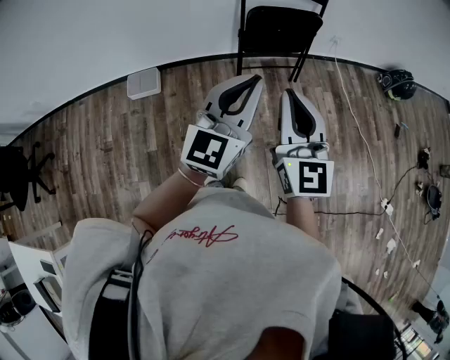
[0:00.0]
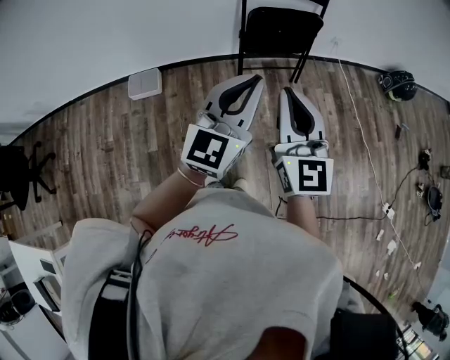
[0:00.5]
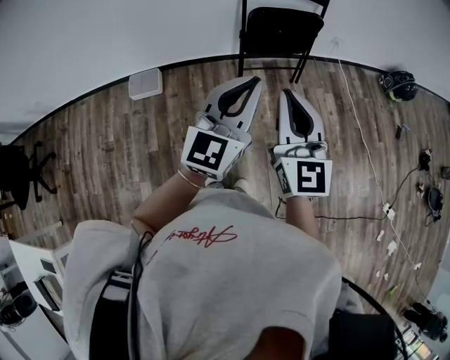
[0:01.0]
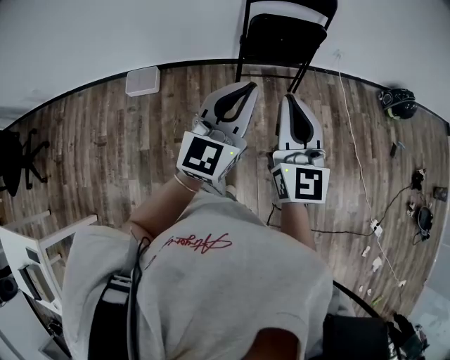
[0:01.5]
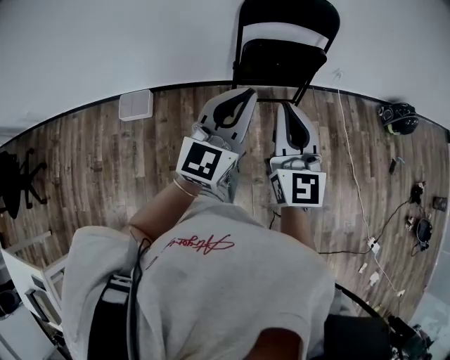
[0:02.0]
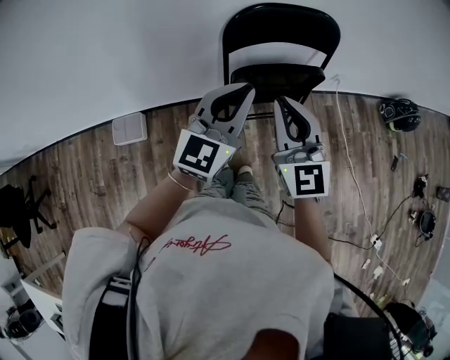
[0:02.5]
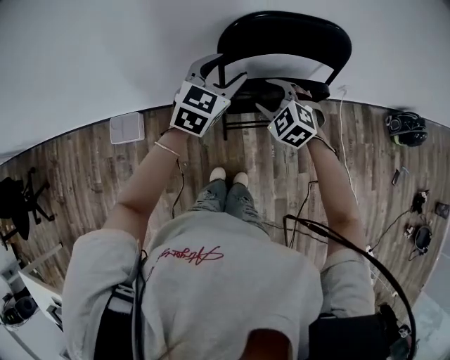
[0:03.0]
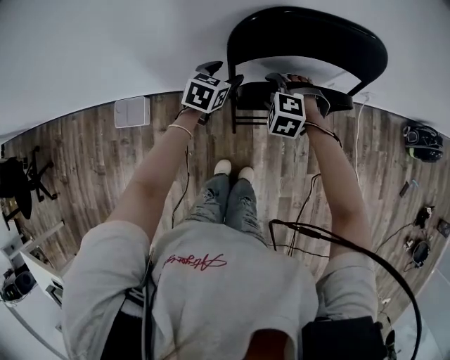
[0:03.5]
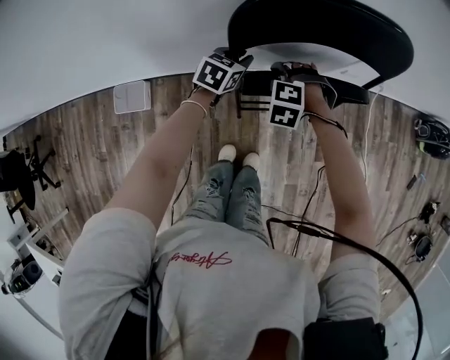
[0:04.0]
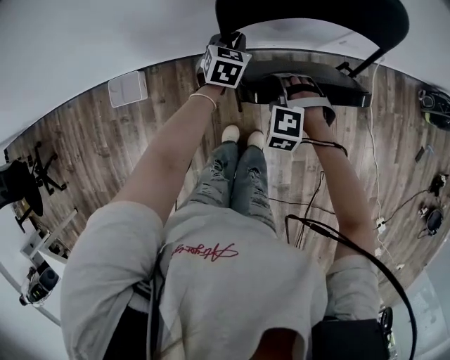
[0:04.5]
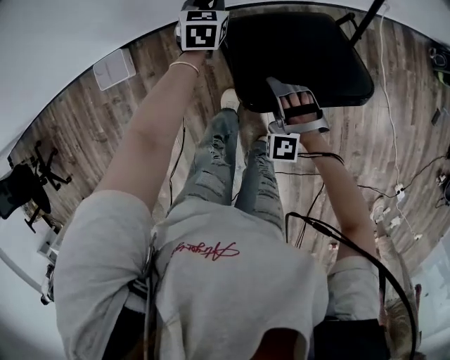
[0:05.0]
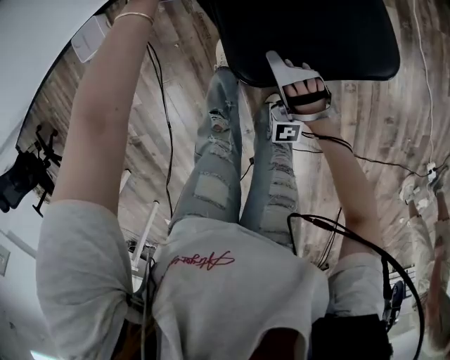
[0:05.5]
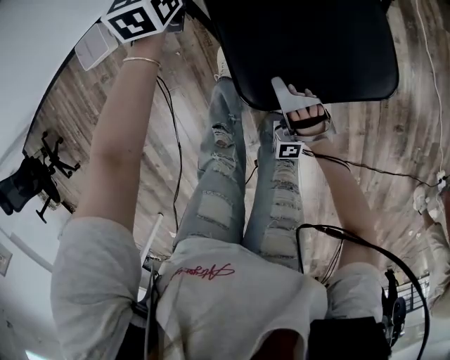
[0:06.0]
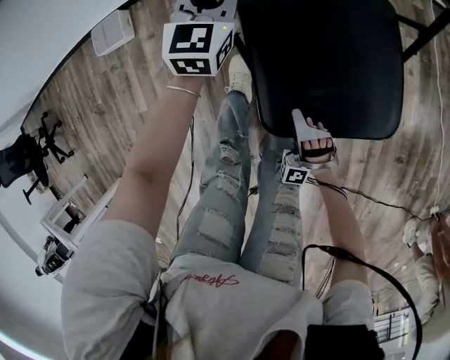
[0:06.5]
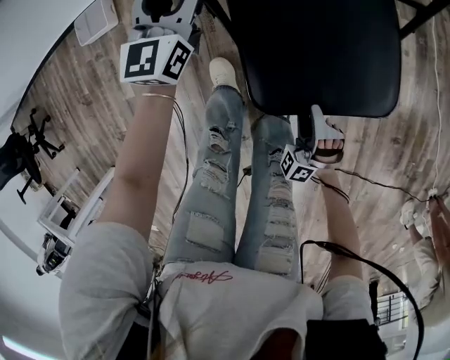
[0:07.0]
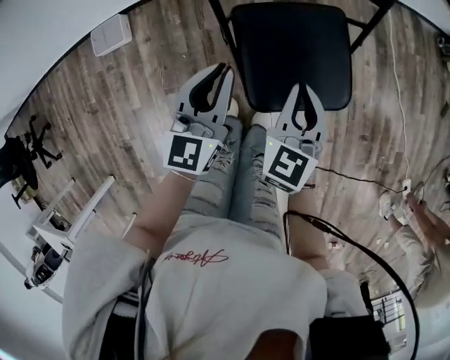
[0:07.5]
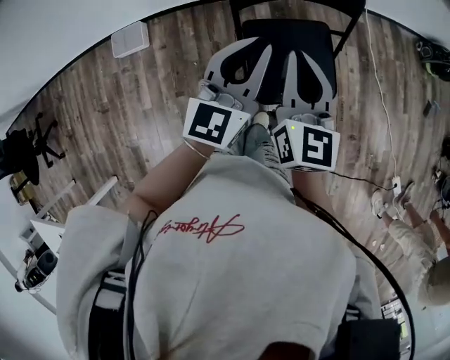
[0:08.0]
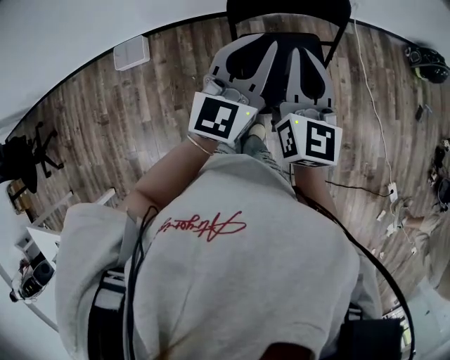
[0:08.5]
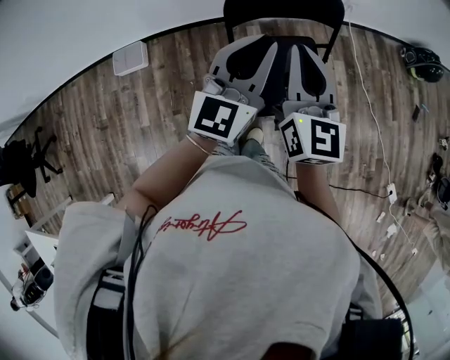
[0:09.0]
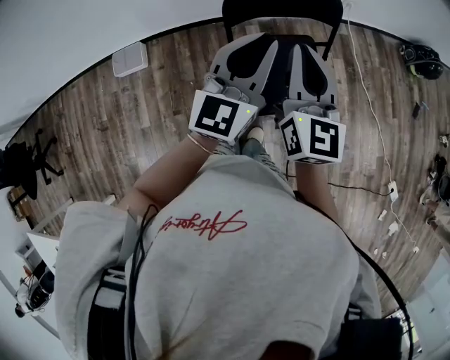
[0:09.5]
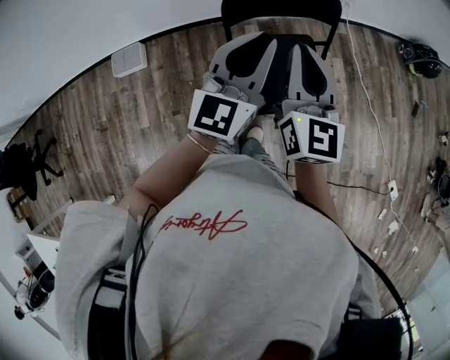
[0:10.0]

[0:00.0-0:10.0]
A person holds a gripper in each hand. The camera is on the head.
0:00.0 to 0:02.0: Both grippers travel together forward, approximately 15 cm.
0:02.0 to 0:04.0: The two grippers go roughly 50 cm forward and downward. The left gripper angles its fingers downward, by approximately 50 degrees, and opens, then closes once more; the right gripper tips its fingers downward by roughly 80 degrees, and opens its fingers.
0:04.0 to 0:06.0: The right gripper is displaced backward and downward by roughly 40 cm, and points its fingers some 50 degrees further upward. Meanwhile the left gripper goes roughly 15 cm backward and downward, and changes its angle by roughly 20 degrees.
0:06.0 to 0:08.0: The right gripper goes roughly 40 cm upward, rolls clockwise, seen from behind, by some 100 degrees, and closes up. The left gripper travels upward and backward by approximately 40 cm, turns by about 30 degrees, and opens, then closes once more.
0:08.0 to 0:10.0: Both grippers travel together upward, some 5 cm.

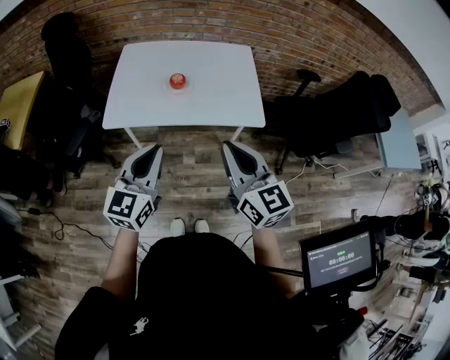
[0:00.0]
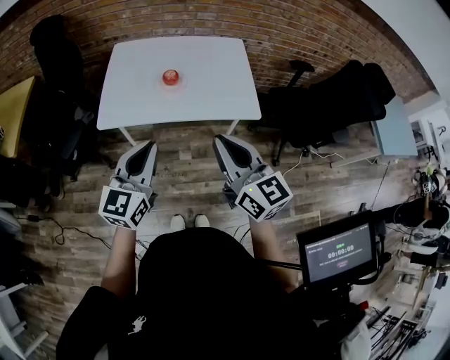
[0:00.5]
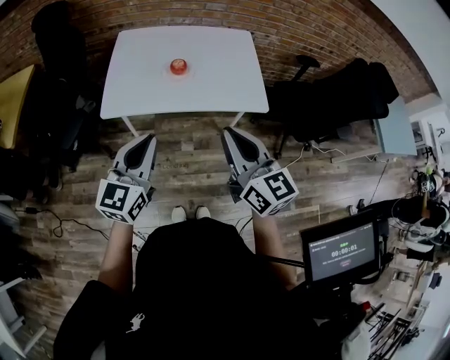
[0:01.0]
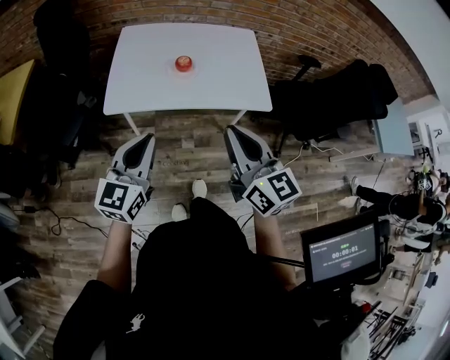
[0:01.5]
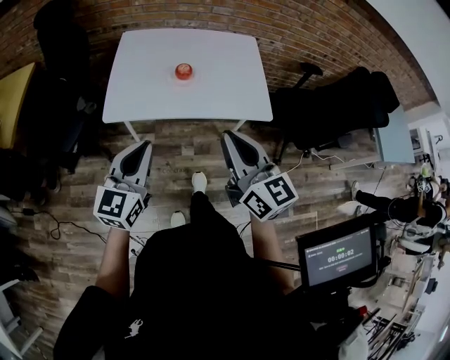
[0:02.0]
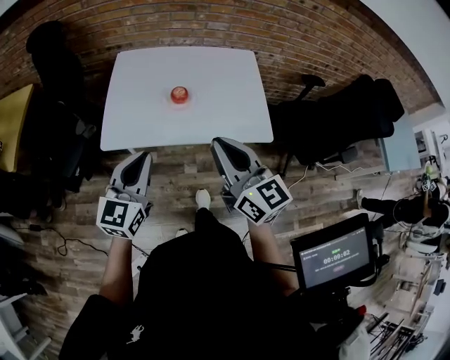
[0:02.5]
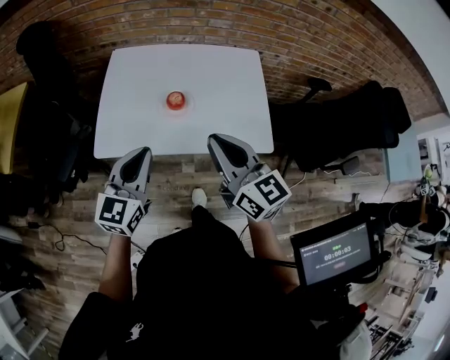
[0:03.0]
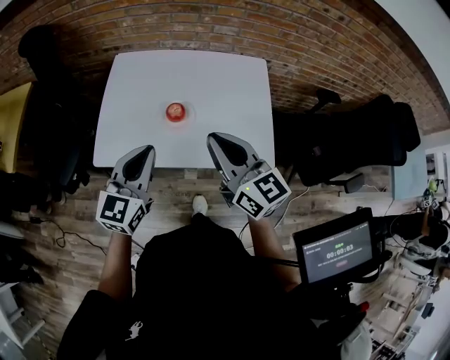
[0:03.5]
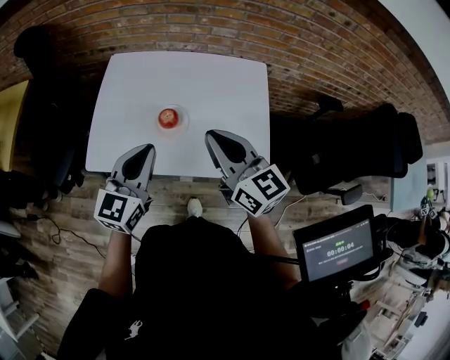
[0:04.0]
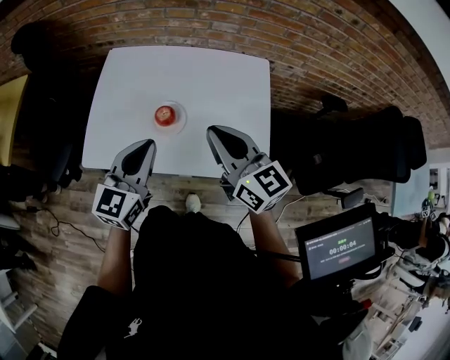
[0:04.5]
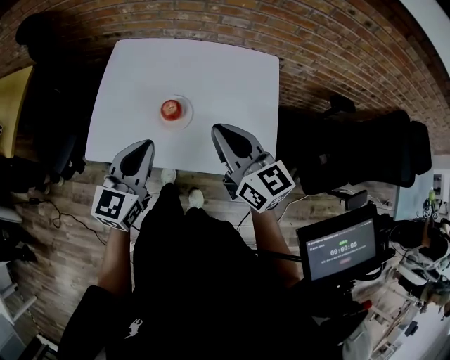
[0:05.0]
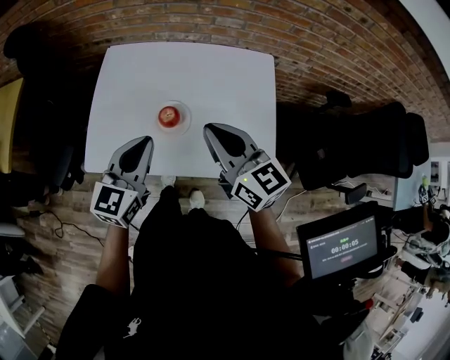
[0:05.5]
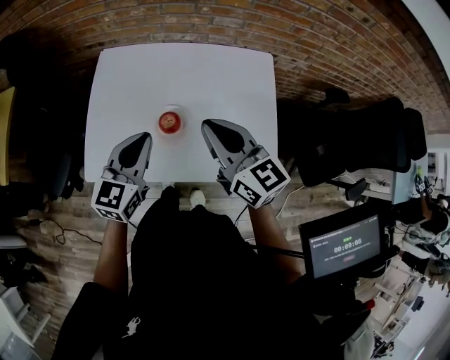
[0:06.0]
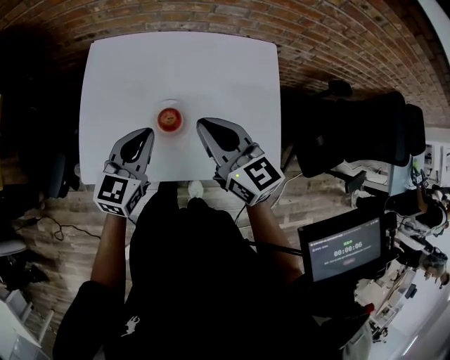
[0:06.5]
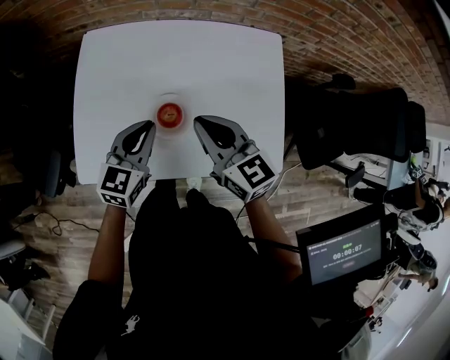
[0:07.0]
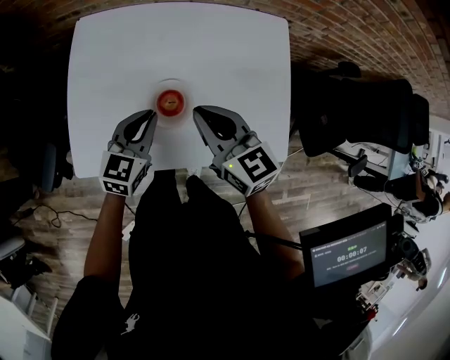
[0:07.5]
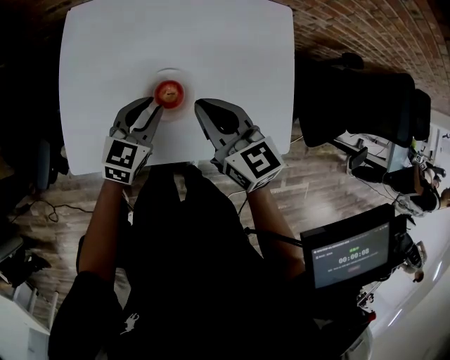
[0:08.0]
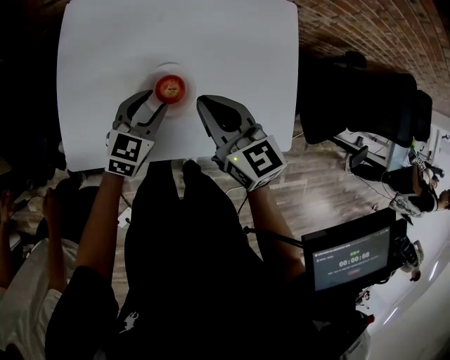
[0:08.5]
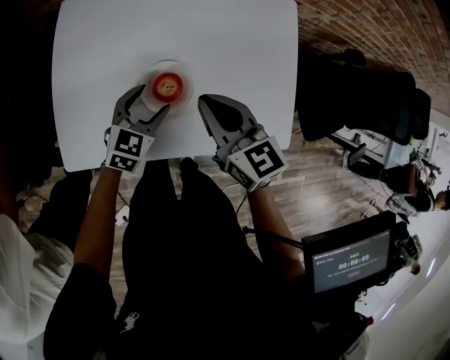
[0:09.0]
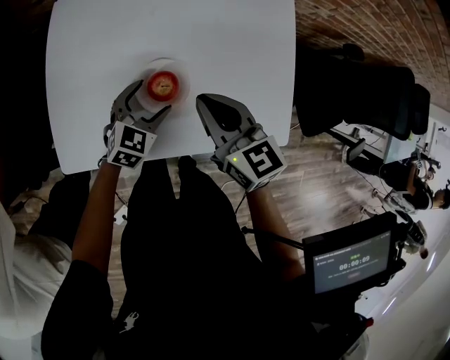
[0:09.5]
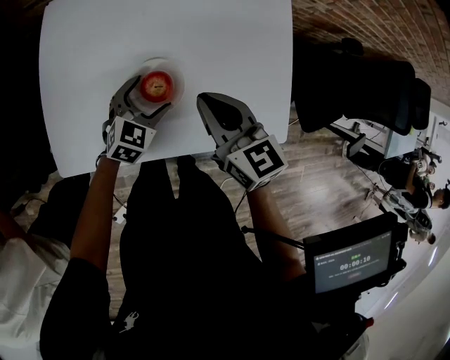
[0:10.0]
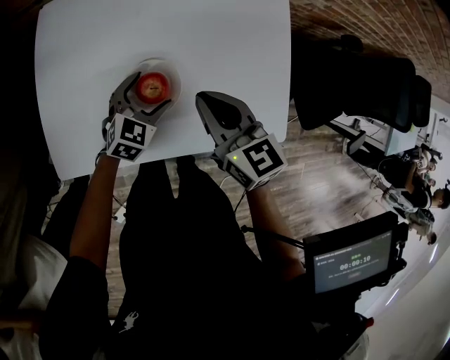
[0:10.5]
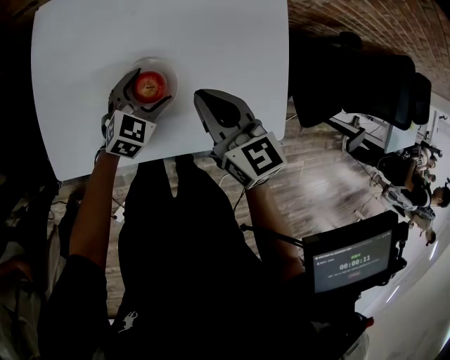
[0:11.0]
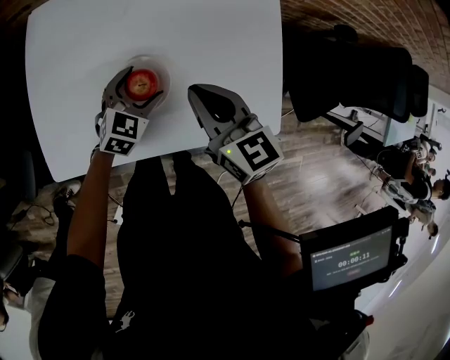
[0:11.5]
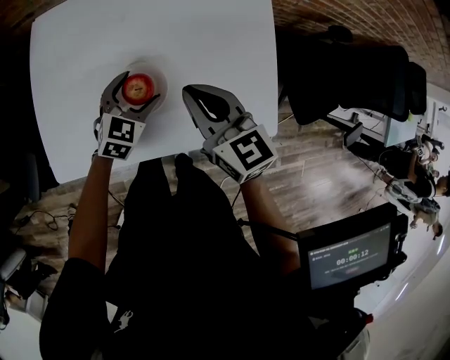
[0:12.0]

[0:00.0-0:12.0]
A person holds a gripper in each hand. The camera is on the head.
0:00.0 to 0:02.0: Both grippers move to the left, roughly 5 cm.
0:02.0 to 0:04.0: The right gripper shifts about 25 cm forward. Meanwhile the left gripper goes approximately 25 cm forward and to the right.
0:04.0 to 0:06.0: The grippers both shift forward by some 10 cm.
0:06.0 to 0:08.0: Both grippers move downward, some 15 cm.
0:08.0 to 0:10.0: The left gripper is displaced downward by some 5 cm, and opens.
0:10.0 to 0:12.0: The grippers move only a little.

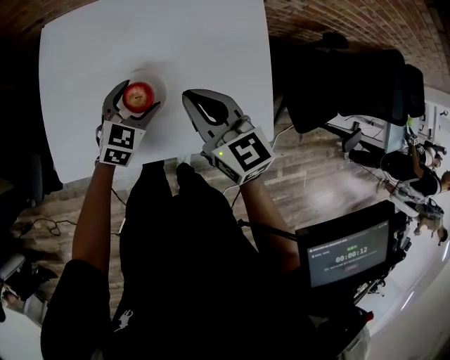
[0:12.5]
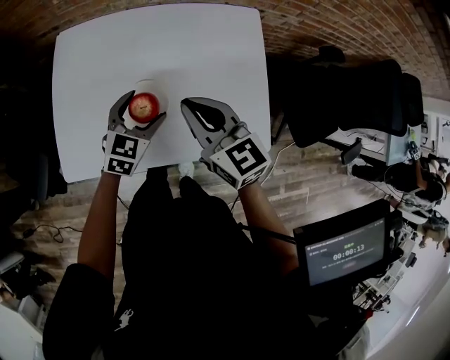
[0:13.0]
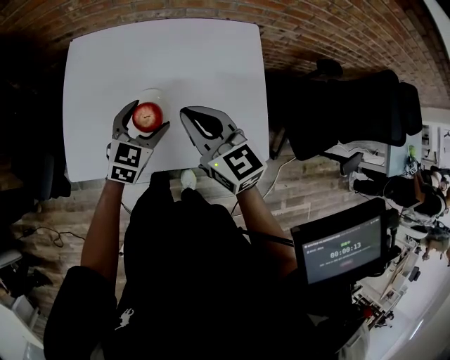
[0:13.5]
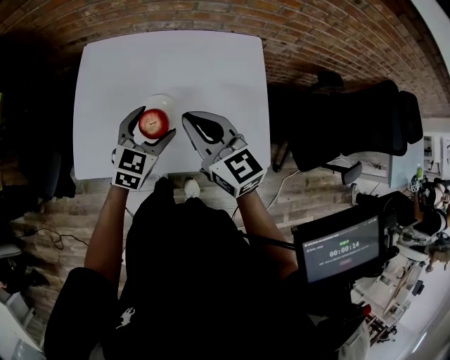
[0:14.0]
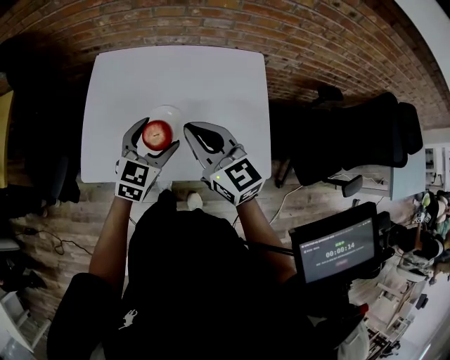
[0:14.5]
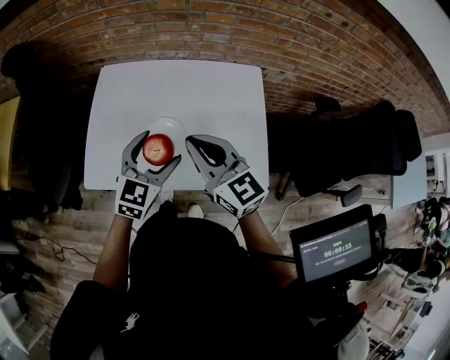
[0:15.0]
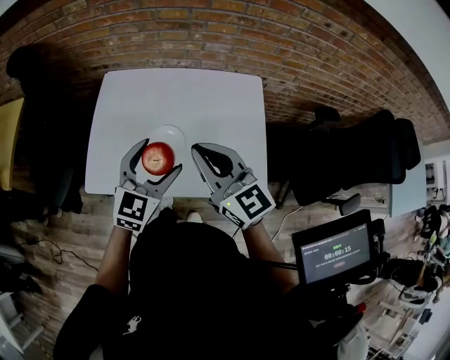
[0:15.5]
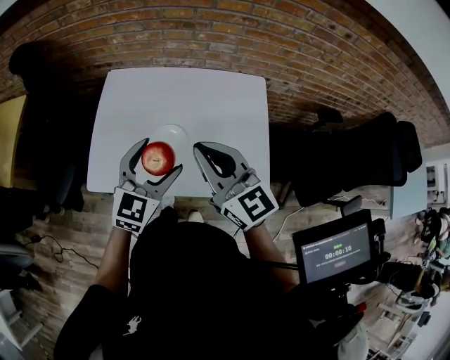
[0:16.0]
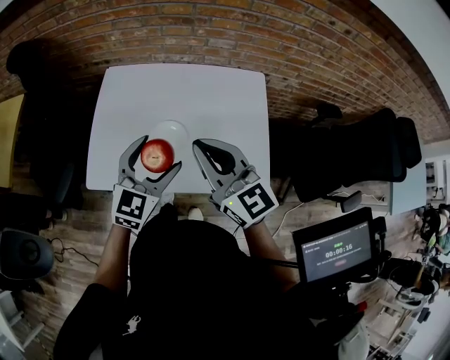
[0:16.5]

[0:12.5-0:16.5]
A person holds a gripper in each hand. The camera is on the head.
0:12.5 to 0:14.5: The grippers both shift upward and backward by approximately 15 cm.
0:14.5 to 0:16.5: Both grippers move upward, roughly 5 cm.

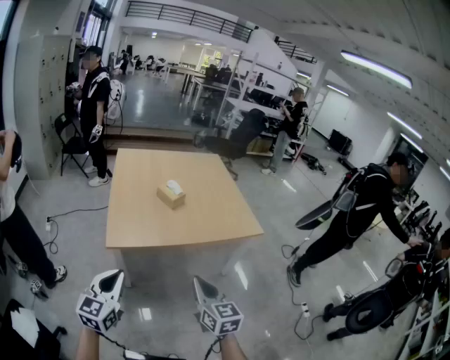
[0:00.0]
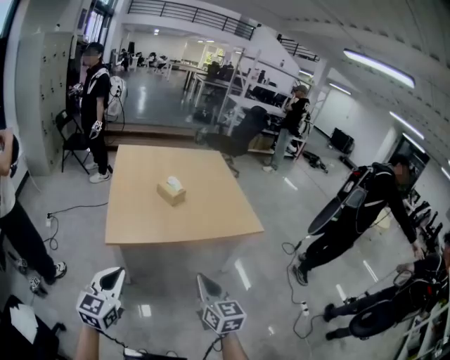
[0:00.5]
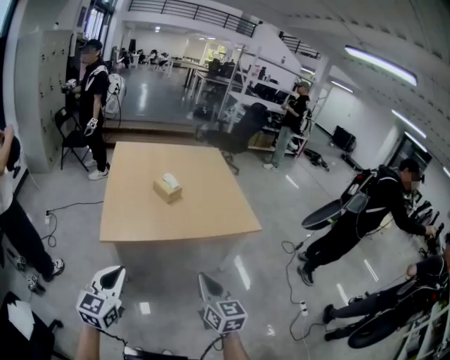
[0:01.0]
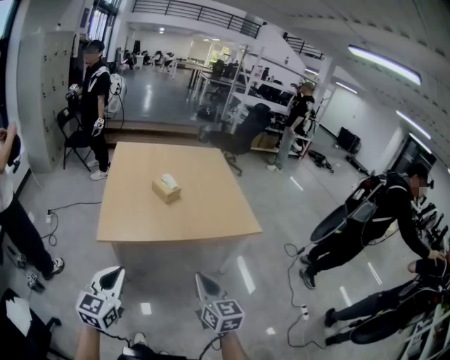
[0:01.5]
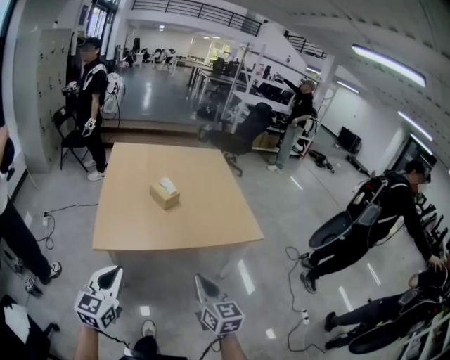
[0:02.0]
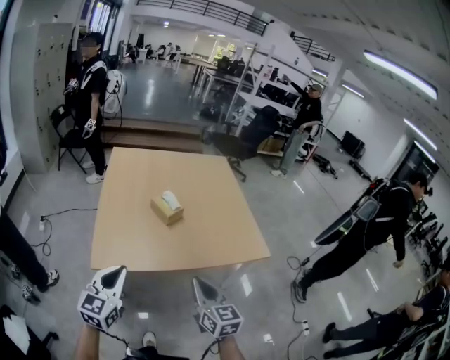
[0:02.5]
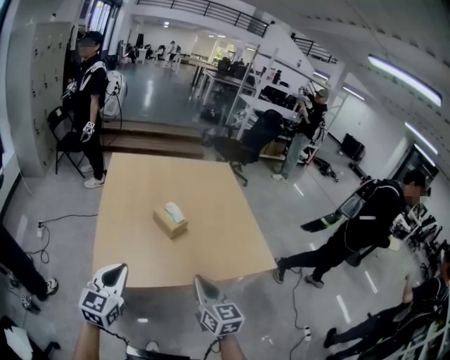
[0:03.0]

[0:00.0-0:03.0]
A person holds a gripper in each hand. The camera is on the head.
0:00.0 to 0:01.5: Both grippers travel together to the right, about 5 cm.
0:01.5 to 0:03.0: The grippers both shift forward by approximately 25 cm.
